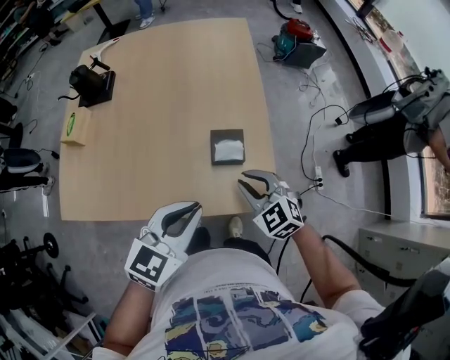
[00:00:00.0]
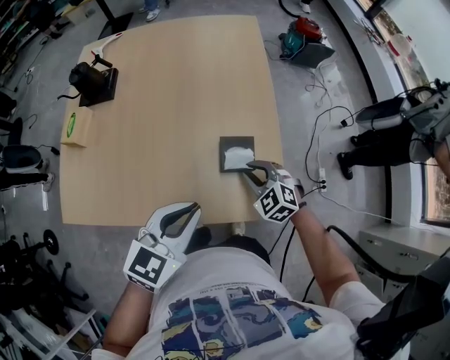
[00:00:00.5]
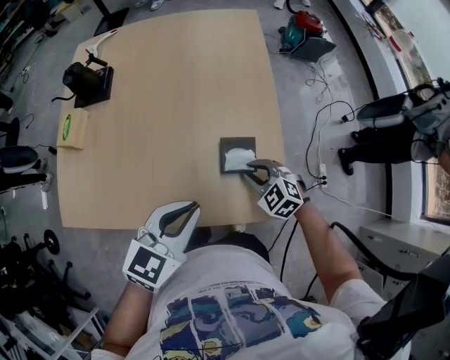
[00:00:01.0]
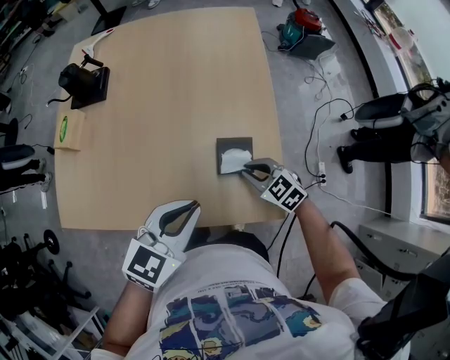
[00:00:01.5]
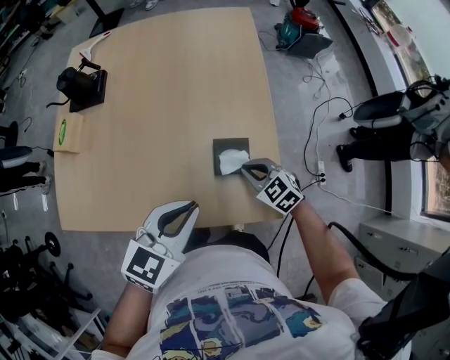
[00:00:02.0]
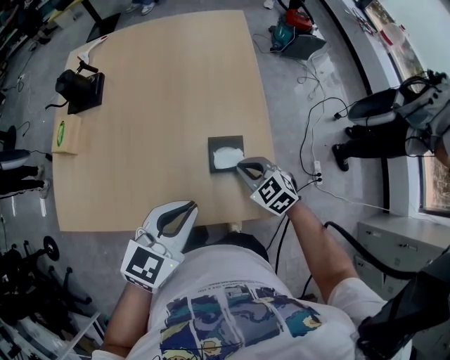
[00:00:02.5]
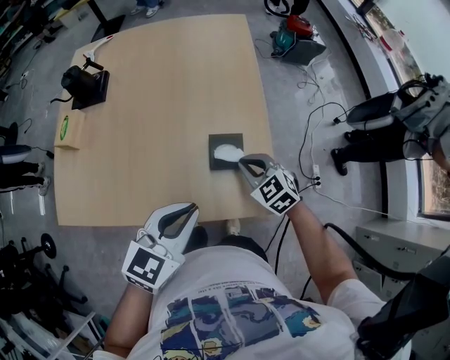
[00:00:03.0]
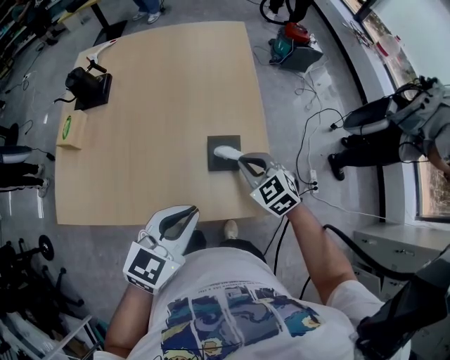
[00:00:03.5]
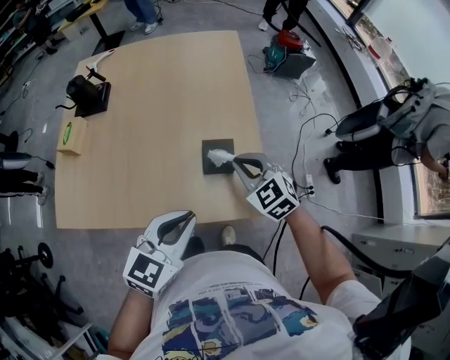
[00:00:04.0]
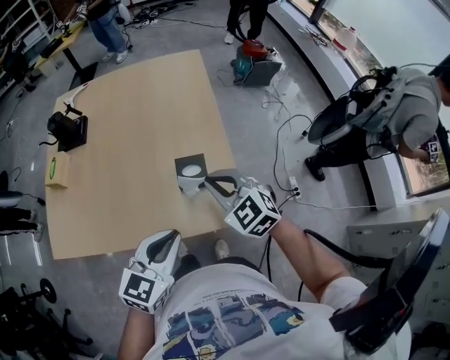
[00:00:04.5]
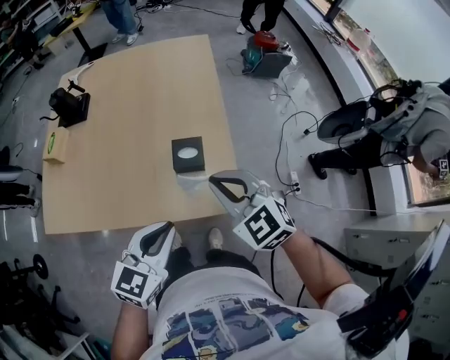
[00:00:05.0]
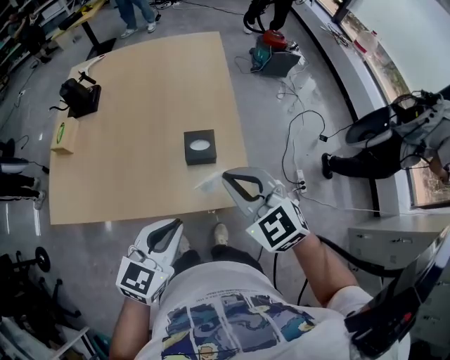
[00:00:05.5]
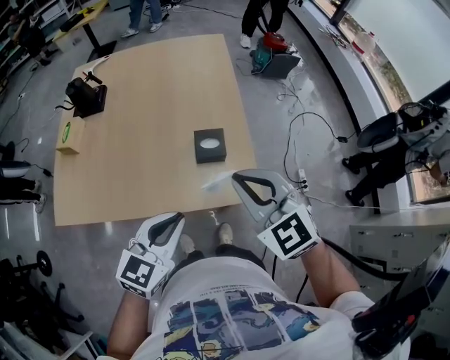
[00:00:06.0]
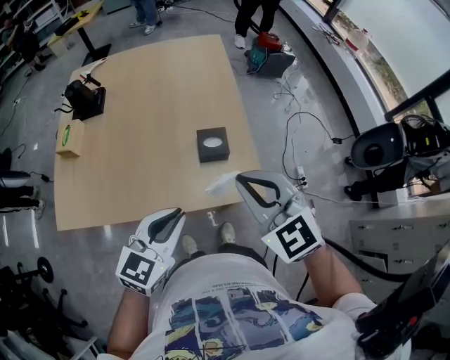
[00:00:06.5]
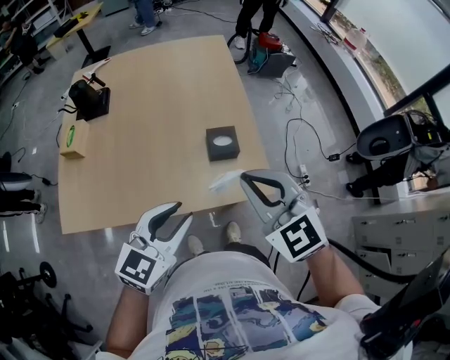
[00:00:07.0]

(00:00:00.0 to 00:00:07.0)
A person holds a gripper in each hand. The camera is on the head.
00:00:00.0 - 00:00:02.0: The left gripper goes some 5 cm forward; the right gripper goes roughly 10 cm downward and forward.
00:00:02.0 - 00:00:03.5: The right gripper heads upward, covering some 10 cm, while the left gripper shifts some 5 cm backward.
00:00:03.5 - 00:00:05.0: The right gripper shifts some 15 cm upward and backward. Meanwhile the left gripper is displaced backward by roughly 5 cm.
00:00:05.0 - 00:00:07.0: The left gripper goes some 10 cm to the left, and opens its fingers. Meanwhile the right gripper is displaced to the left, upward and backward by some 15 cm.

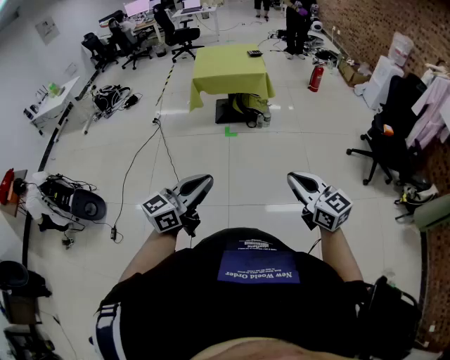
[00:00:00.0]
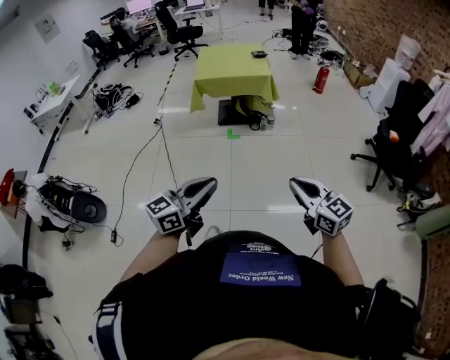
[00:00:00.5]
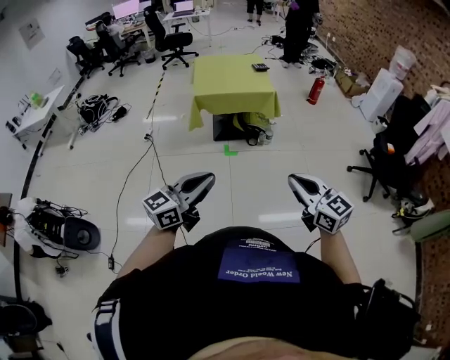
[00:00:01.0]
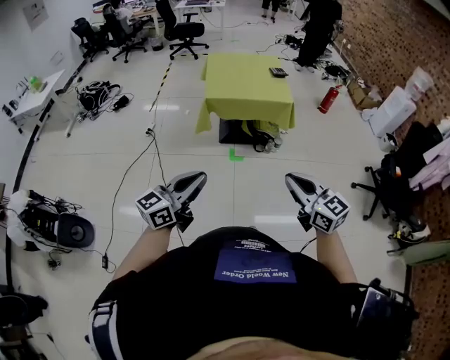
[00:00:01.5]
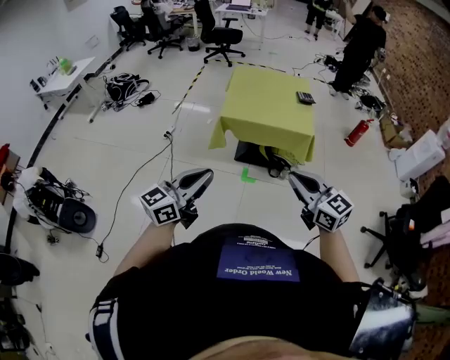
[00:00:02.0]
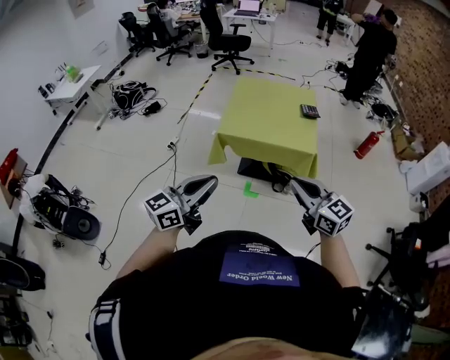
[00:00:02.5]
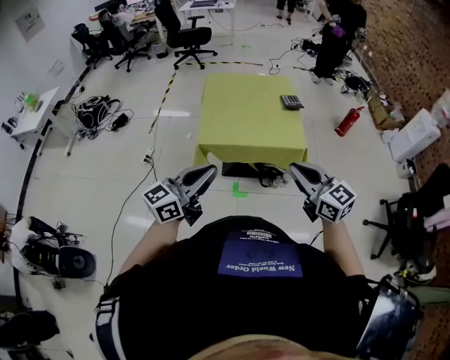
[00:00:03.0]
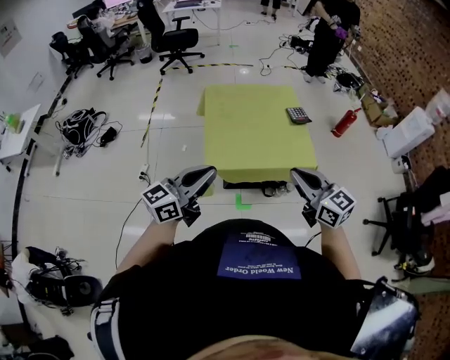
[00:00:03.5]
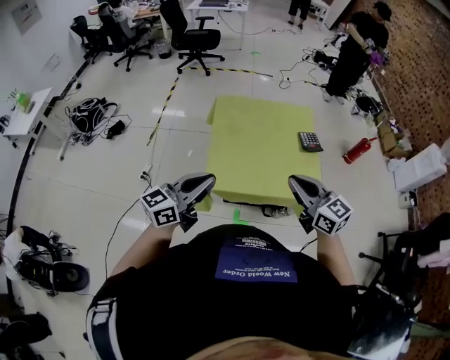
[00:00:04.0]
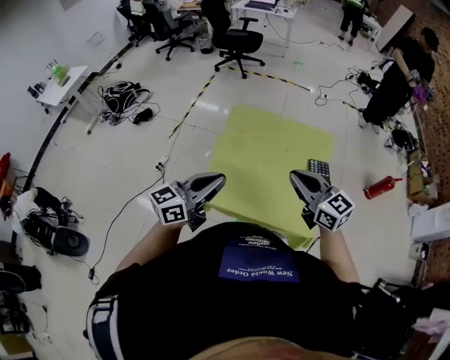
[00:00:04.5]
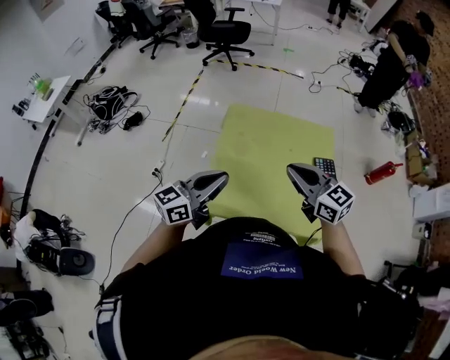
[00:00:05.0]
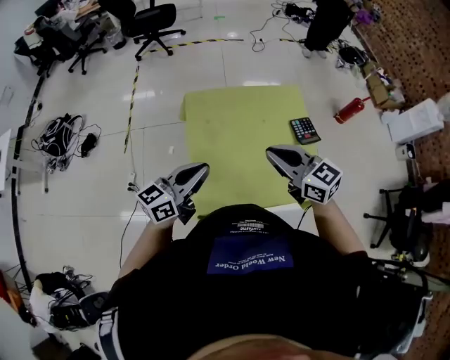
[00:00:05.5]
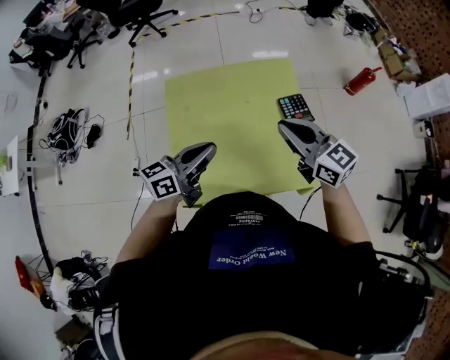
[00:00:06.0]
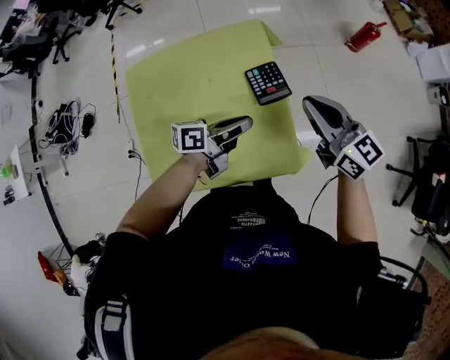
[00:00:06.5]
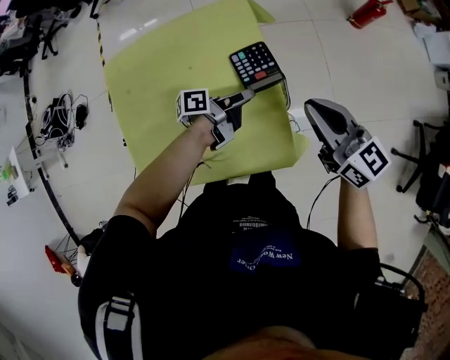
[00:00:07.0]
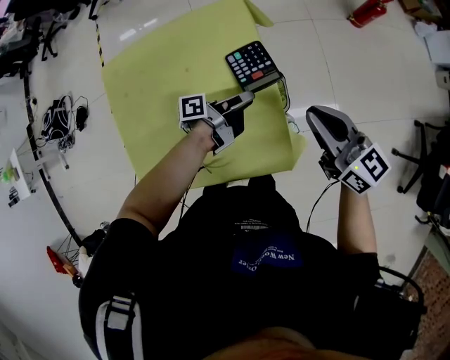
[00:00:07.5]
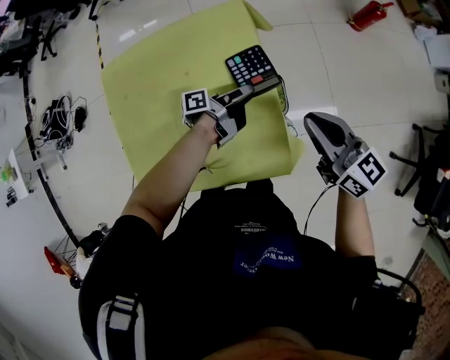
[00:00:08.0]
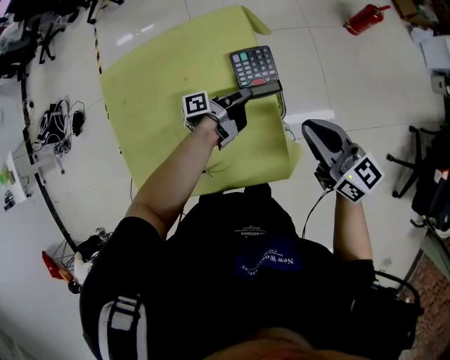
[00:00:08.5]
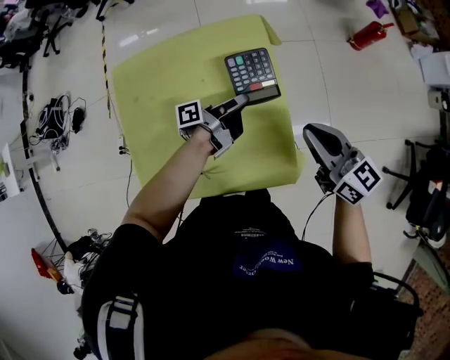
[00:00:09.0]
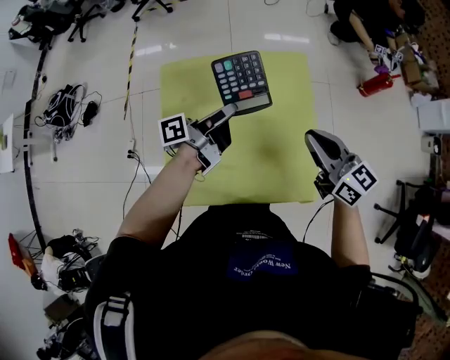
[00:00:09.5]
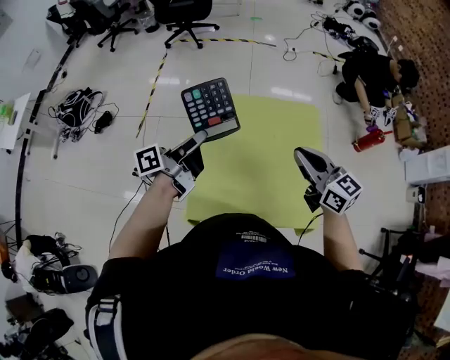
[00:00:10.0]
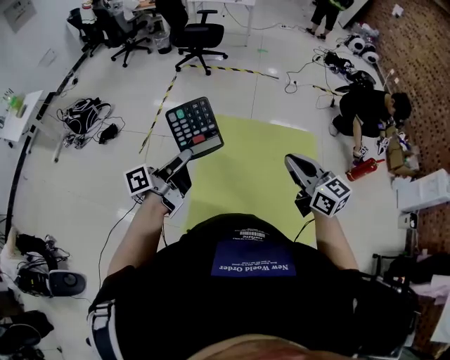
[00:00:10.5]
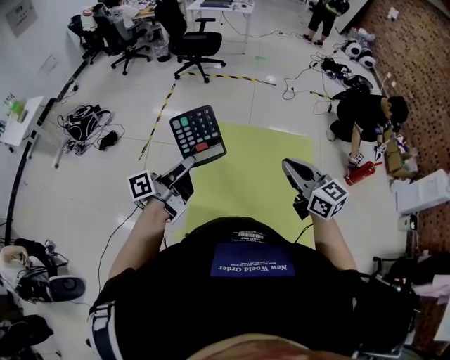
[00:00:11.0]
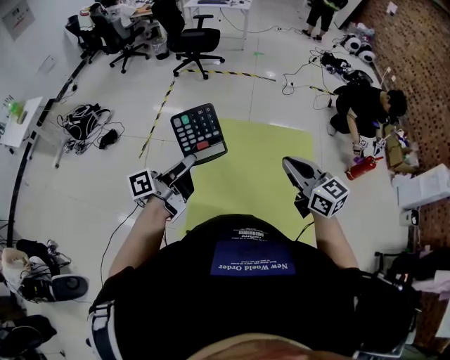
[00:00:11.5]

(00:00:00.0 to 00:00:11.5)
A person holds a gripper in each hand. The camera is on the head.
00:00:00.0 - 00:00:02.0: Both grippers are carried forward, roughly 60 cm.
00:00:02.0 - 00:00:04.0: Both grippers are carried forward, roughly 50 cm.
00:00:04.0 - 00:00:06.0: Both grippers move forward and to the right, about 30 cm. The left gripper swivels some 20 degrees.
00:00:06.0 - 00:00:07.5: The right gripper travels to the right and downward by approximately 25 cm; the left gripper shifts approximately 40 cm to the right, downward and forward, twists about 60 degrees counterclockwise, seen from behind, and opens.
00:00:07.5 - 00:00:09.5: The right gripper goes some 20 cm to the left. Meanwhile the left gripper shifts roughly 30 cm to the left and upward, turns by roughly 30 degrees, and closes.
00:00:09.5 - 00:00:11.5: The left gripper goes some 30 cm to the left, upward and backward, and swivels approximately 20 degrees. The right gripper shifts roughly 20 cm to the left and upward.

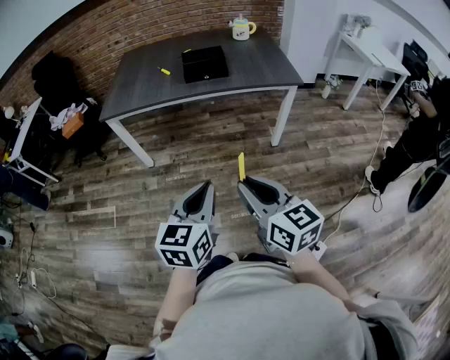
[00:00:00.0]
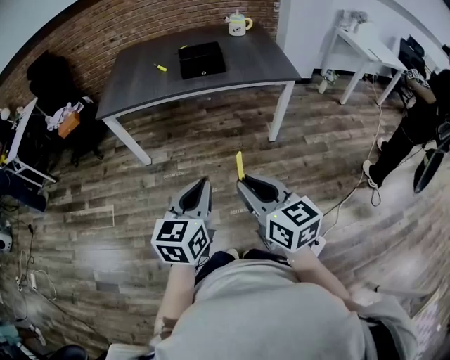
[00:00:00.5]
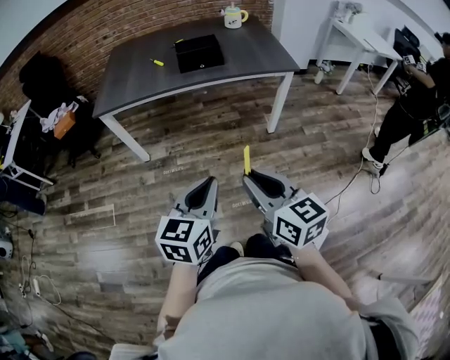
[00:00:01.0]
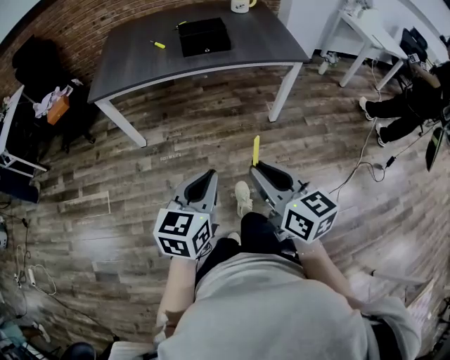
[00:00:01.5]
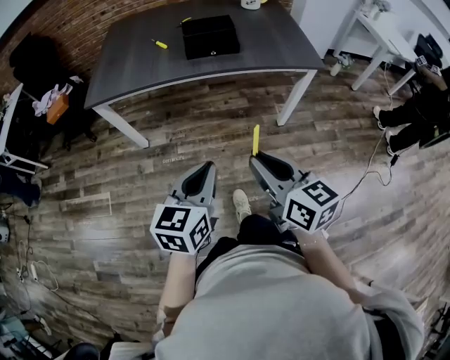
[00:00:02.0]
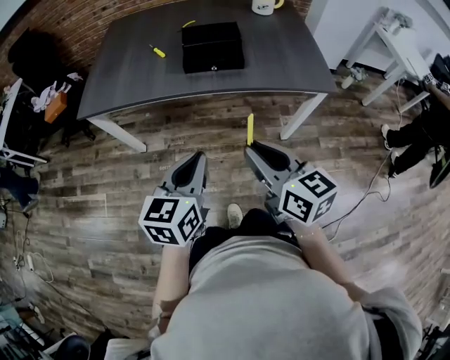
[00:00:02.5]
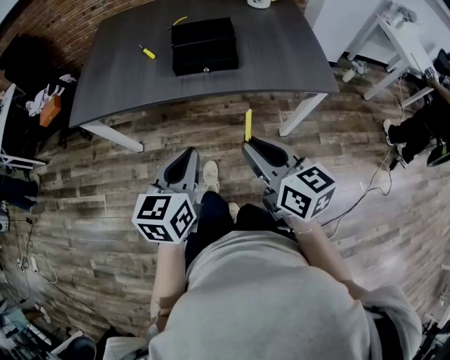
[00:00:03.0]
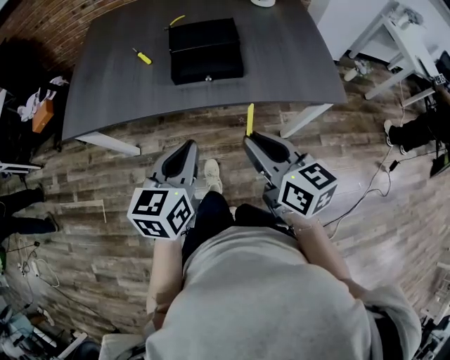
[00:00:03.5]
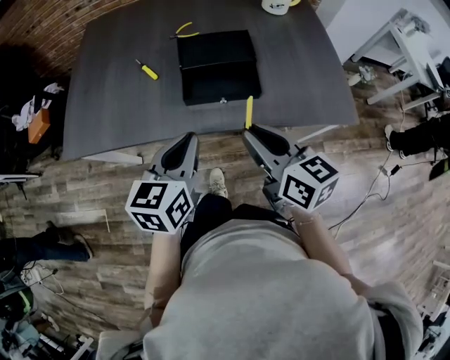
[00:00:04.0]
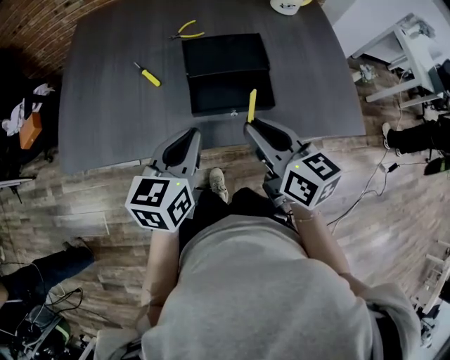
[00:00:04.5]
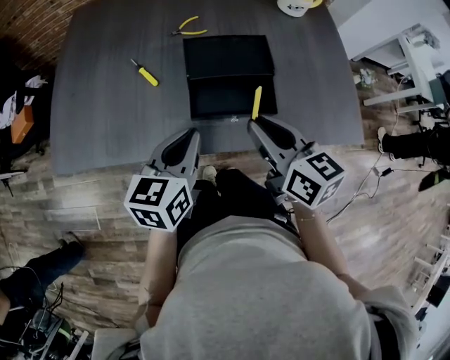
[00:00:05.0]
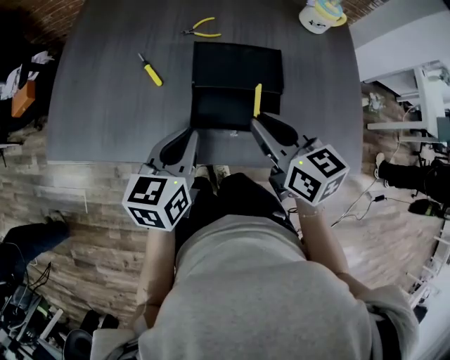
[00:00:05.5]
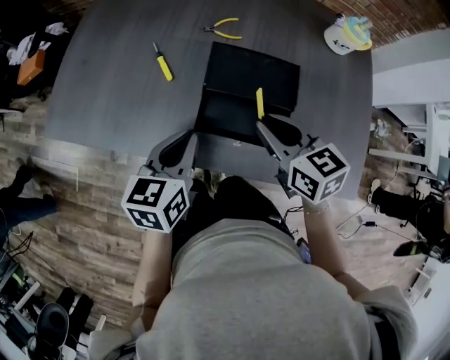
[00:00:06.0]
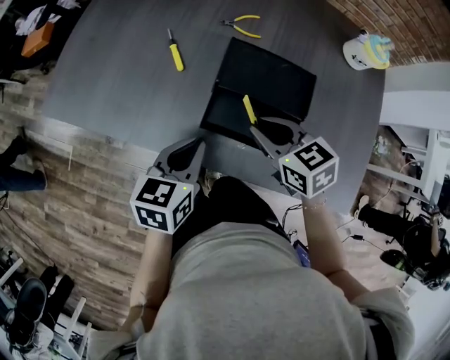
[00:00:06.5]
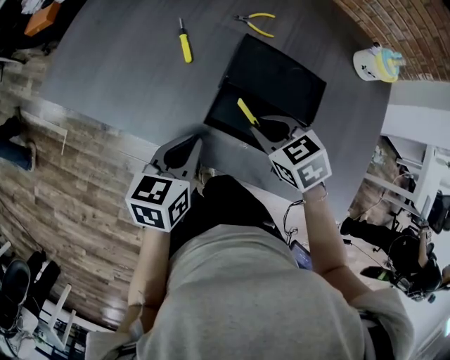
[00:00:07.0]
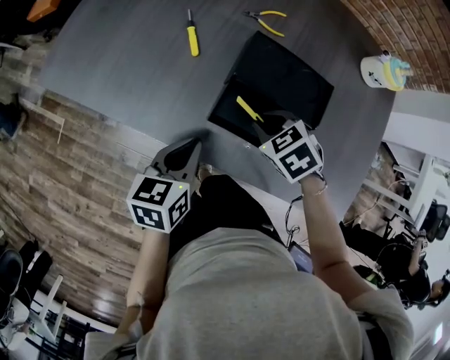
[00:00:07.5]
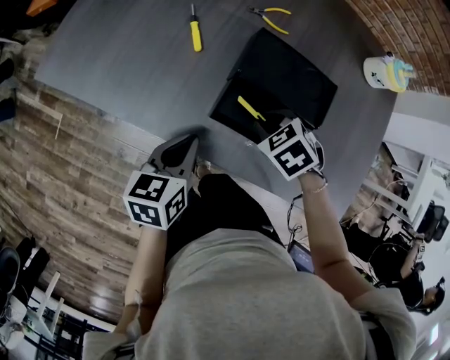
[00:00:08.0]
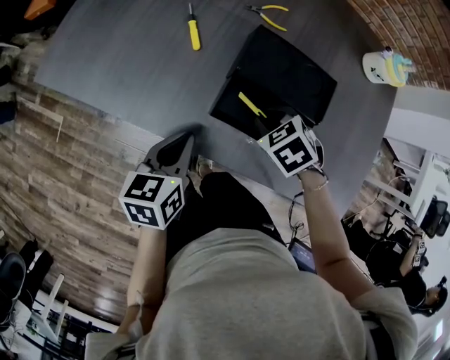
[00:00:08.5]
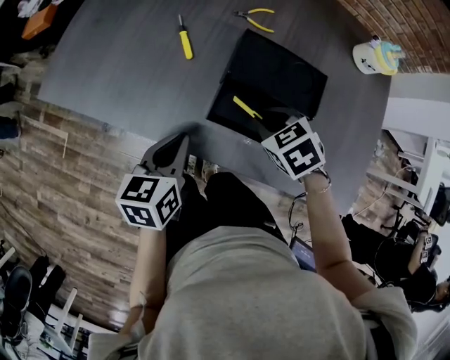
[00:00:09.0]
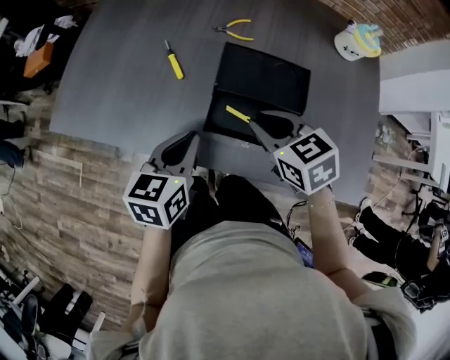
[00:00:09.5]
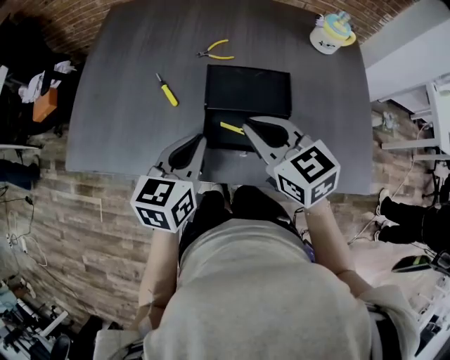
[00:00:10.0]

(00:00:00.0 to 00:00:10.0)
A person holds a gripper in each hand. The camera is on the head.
00:00:00.0 - 00:00:02.0: Both grippers move forward, roughly 15 cm.
00:00:02.0 - 00:00:04.0: The grippers both shift forward by roughly 40 cm.
00:00:04.0 - 00:00:06.0: The right gripper travels forward by roughly 20 cm, and swivels roughly 30 degrees. The left gripper is displaced forward and downward by approximately 15 cm.
00:00:06.0 - 00:00:08.0: The left gripper moves downward, roughly 10 cm; the right gripper is displaced downward by approximately 15 cm, and angles its fingers downward, by roughly 40 degrees.
00:00:08.0 - 00:00:10.0: The right gripper shifts approximately 20 cm upward, and angles its fingers upward, by roughly 50 degrees; the left gripper moves upward, approximately 10 cm, and turns by about 30 degrees.
